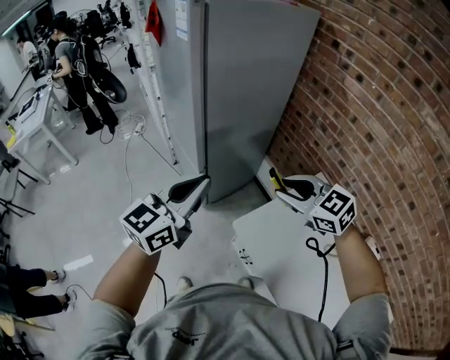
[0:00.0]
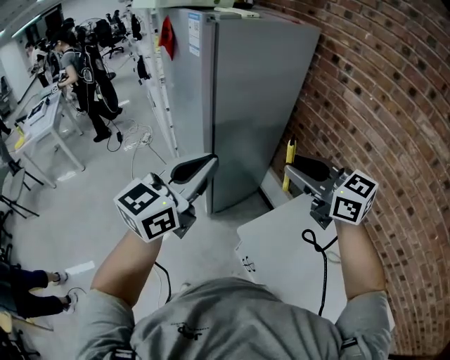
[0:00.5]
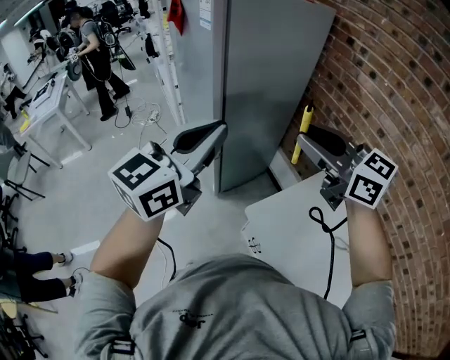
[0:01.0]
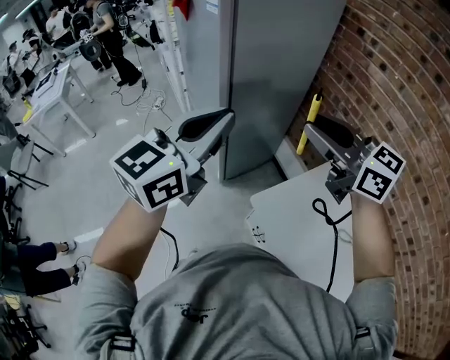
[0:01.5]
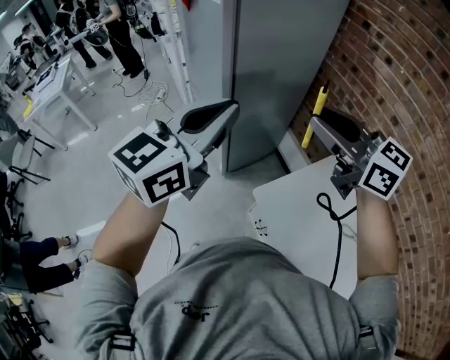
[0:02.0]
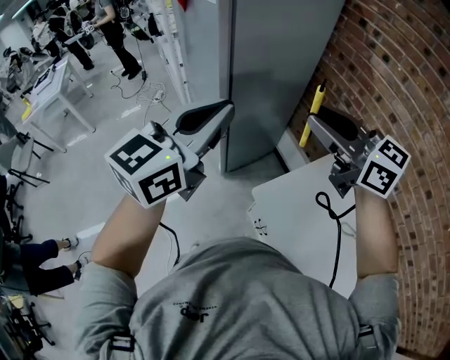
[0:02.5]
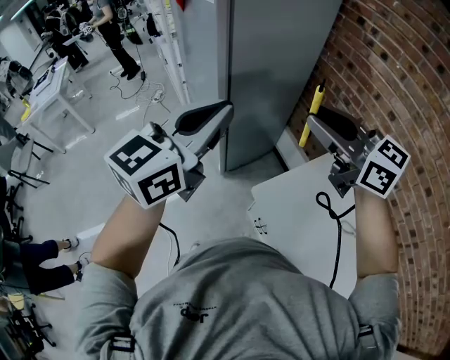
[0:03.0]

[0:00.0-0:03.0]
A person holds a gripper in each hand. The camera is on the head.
0.0 to 1.5 s: The grippers both shift upward by about 15 cm. The right gripper turns by about 30 degrees.
1.5 to 3.0 s: Both grippers stay about where they are.

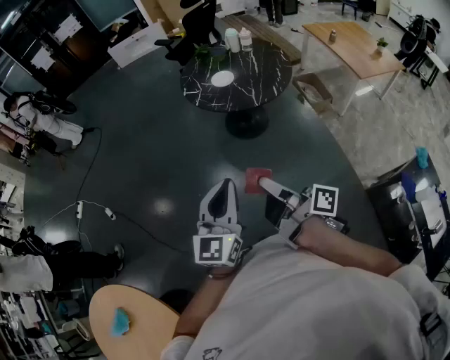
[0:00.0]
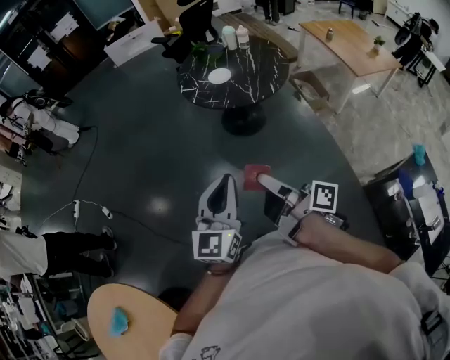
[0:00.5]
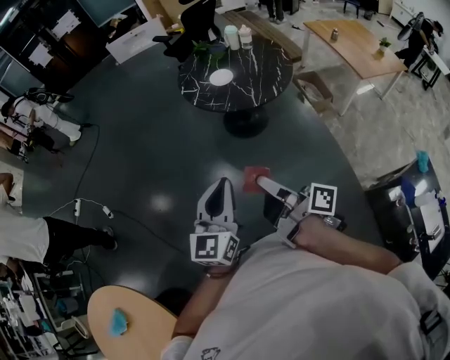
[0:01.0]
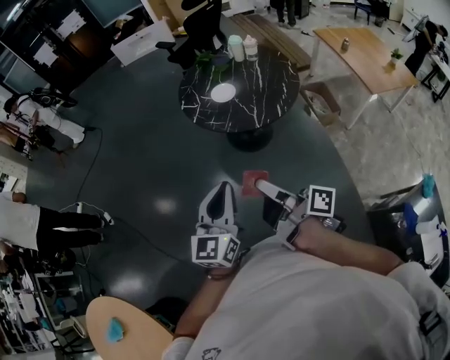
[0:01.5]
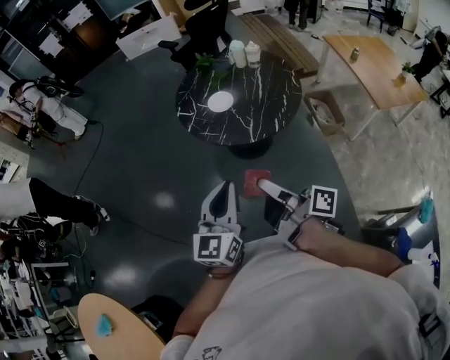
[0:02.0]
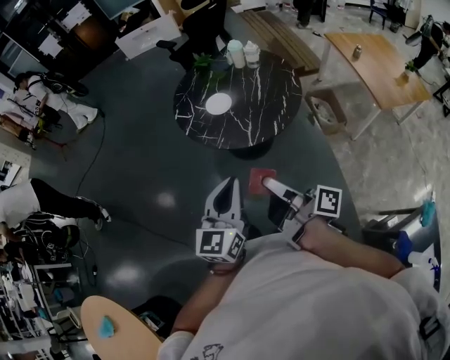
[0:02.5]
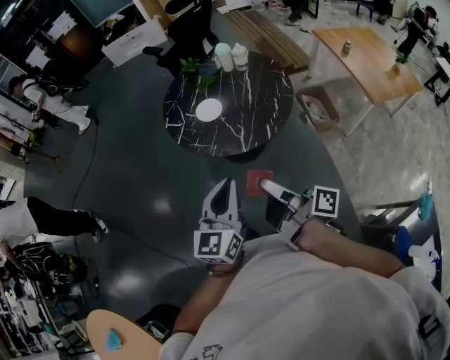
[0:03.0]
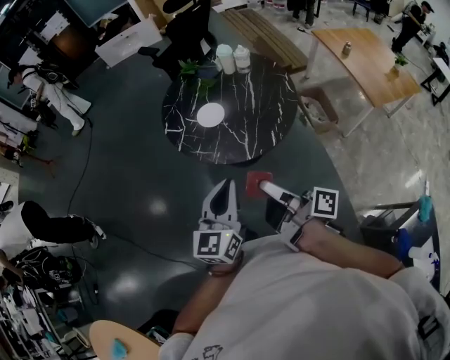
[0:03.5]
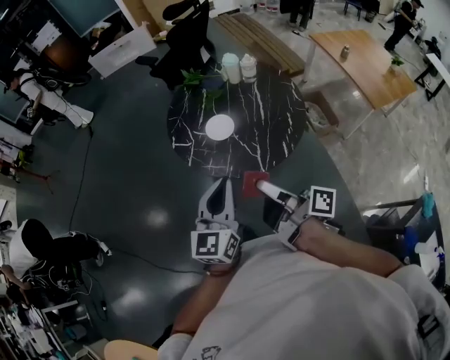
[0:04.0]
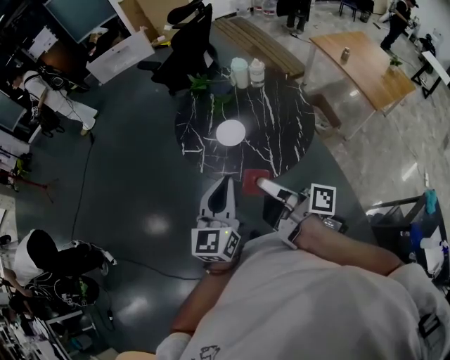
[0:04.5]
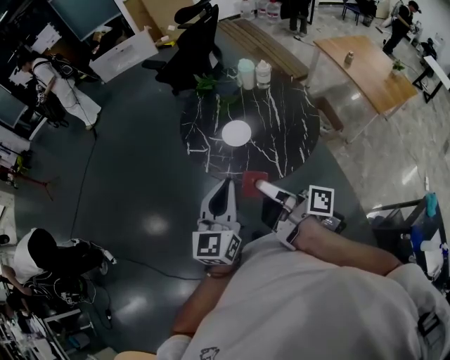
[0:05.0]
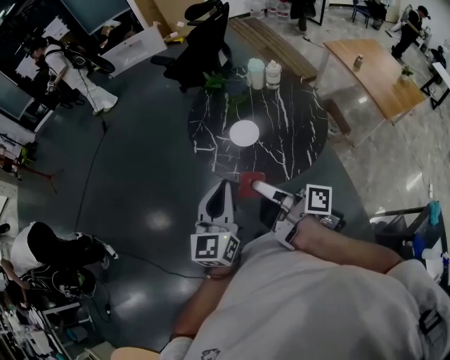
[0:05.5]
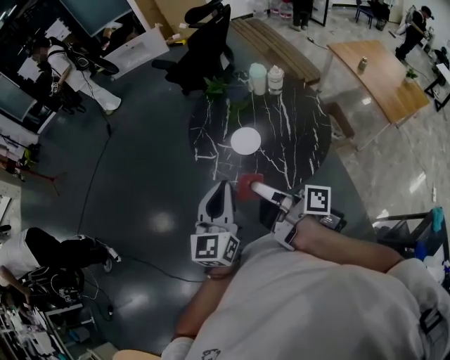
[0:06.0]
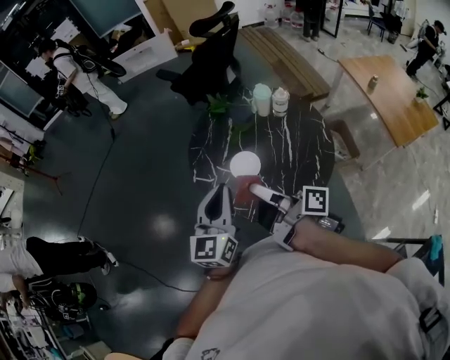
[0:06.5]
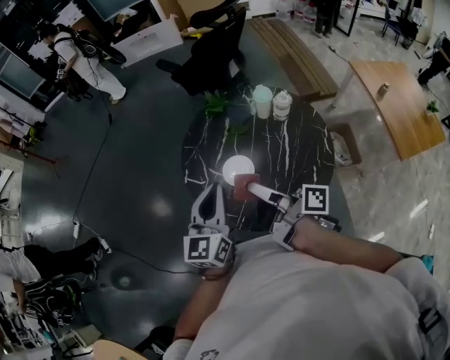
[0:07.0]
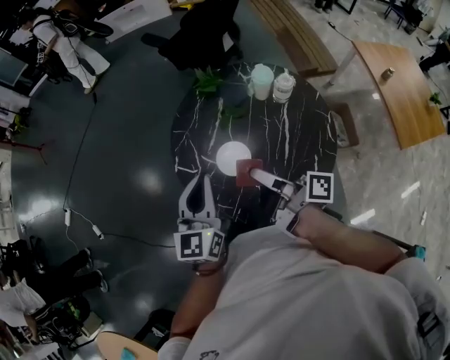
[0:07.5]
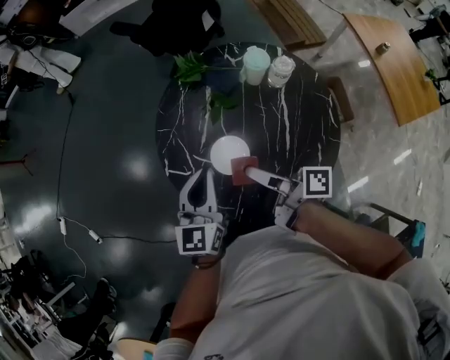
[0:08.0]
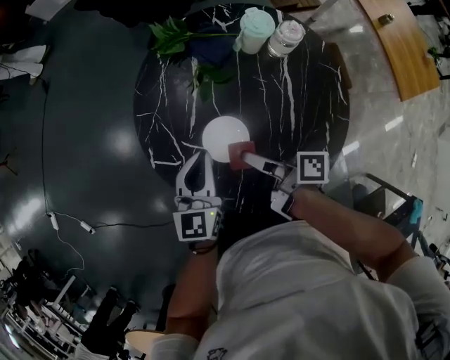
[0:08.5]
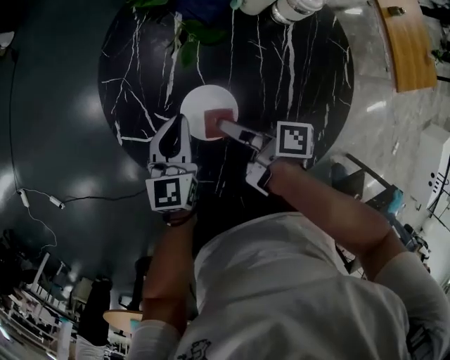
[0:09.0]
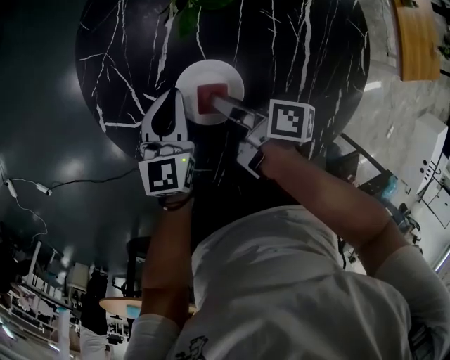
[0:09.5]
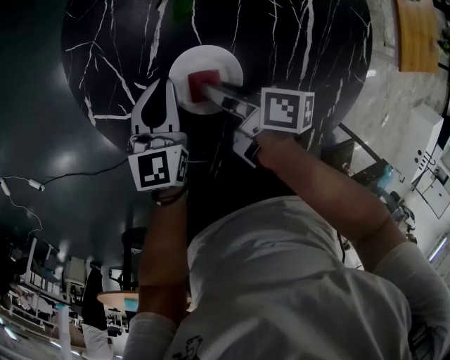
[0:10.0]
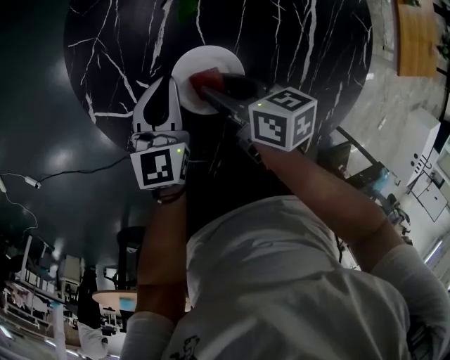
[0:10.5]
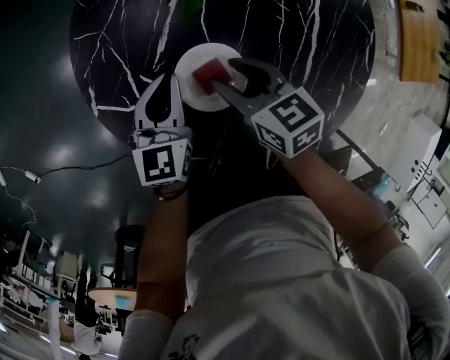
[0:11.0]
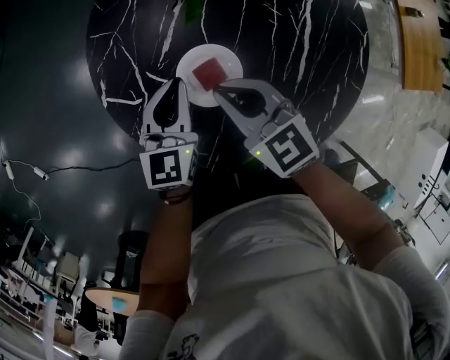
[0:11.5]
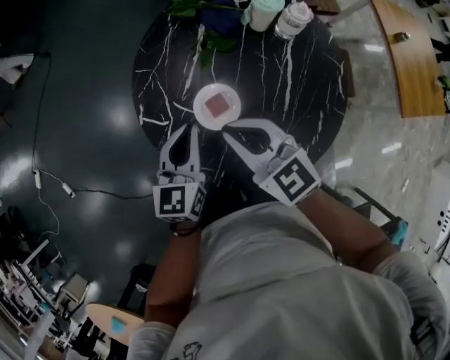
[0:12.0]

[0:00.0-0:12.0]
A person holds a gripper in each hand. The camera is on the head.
0.0 to 2.0 s: The two grippers go some 25 cm forward and to the right.
2.0 to 4.0 s: Both grippers travel together forward, approximately 20 cm.
4.0 to 6.0 s: The two grippers go some 15 cm forward and to the left.
6.0 to 8.0 s: The left gripper moves forward, downward and to the right, roughly 30 cm. Meanwhile the right gripper travels forward, to the right and downward by some 30 cm.
8.0 to 10.0 s: Both grippers travel together downward, some 30 cm. The right gripper rotates about 30 degrees.
10.0 to 12.0 s: The right gripper moves upward, about 25 cm, twists roughly 80 degrees counterclockwise, seen from behind, and closes its fingers. The left gripper heads upward and backward, covering roughly 20 cm.

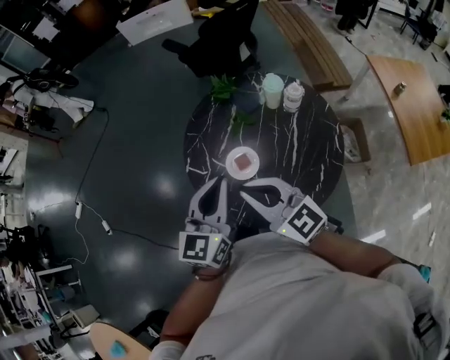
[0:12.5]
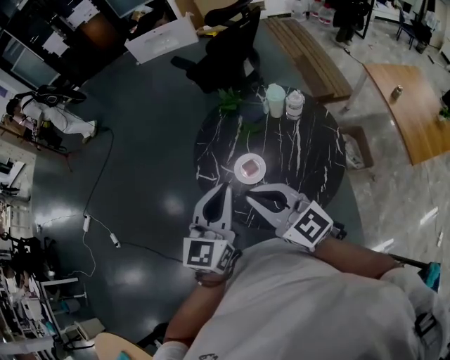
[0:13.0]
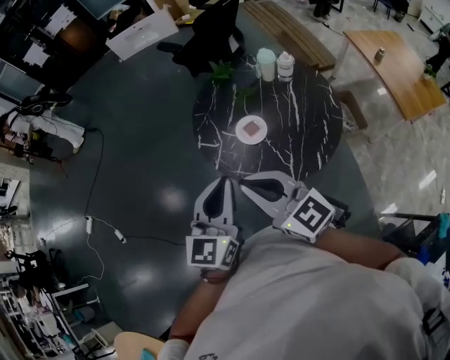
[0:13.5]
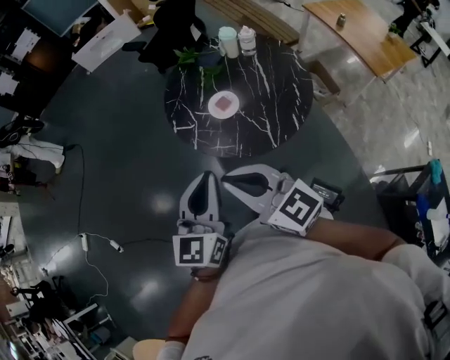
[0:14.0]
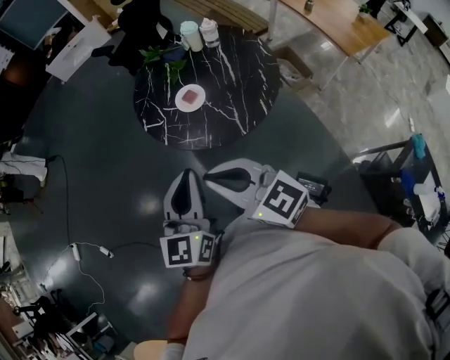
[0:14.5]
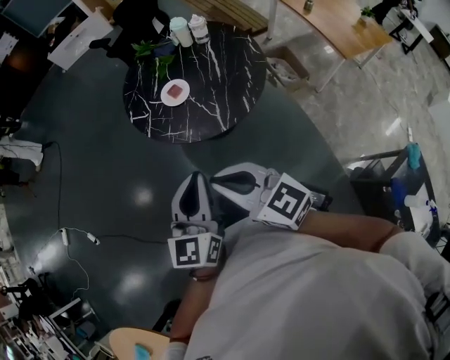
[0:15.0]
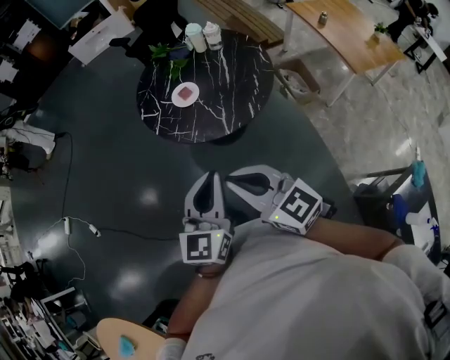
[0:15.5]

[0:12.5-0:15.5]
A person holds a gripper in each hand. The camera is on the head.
12.5 to 14.0 s: The two grippers go approximately 25 cm backward and to the left.
14.0 to 15.5 s: Both grippers move backward and to the right, approximately 25 cm.

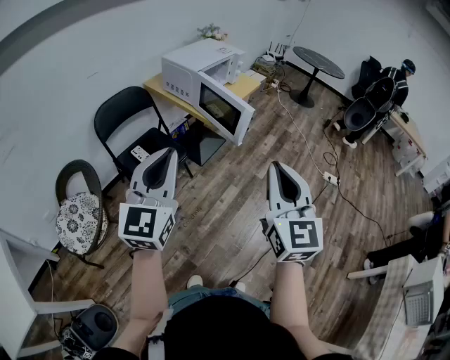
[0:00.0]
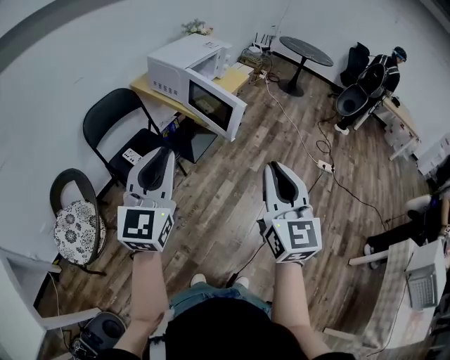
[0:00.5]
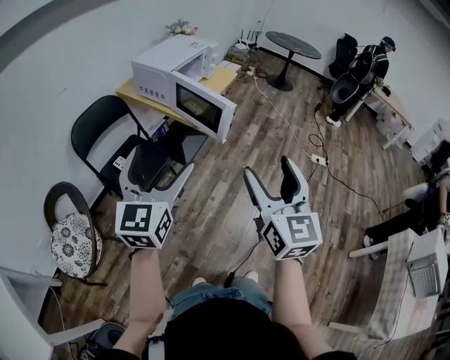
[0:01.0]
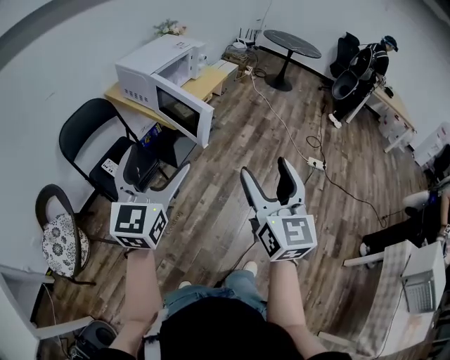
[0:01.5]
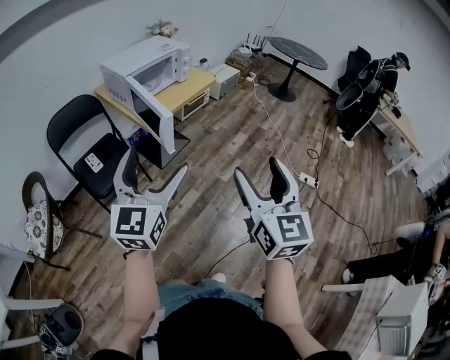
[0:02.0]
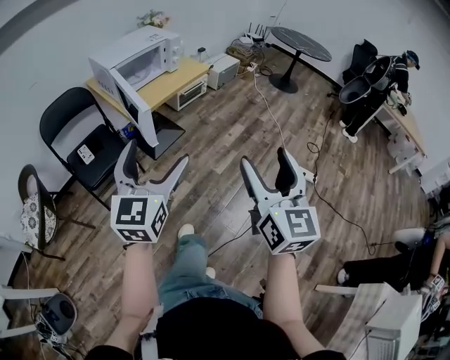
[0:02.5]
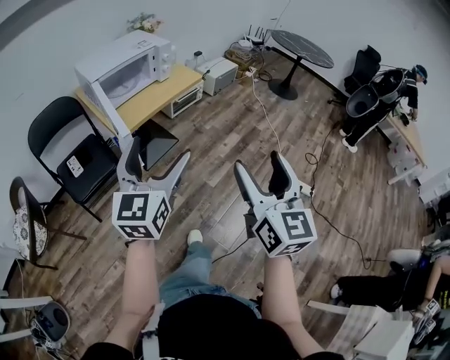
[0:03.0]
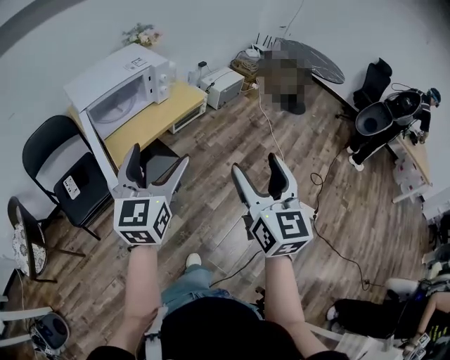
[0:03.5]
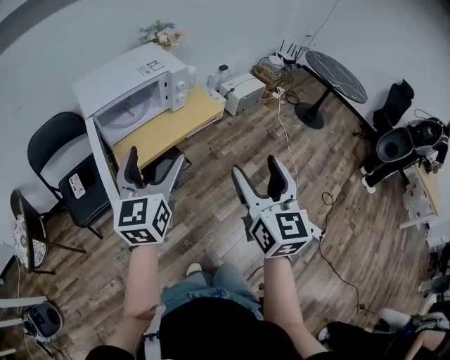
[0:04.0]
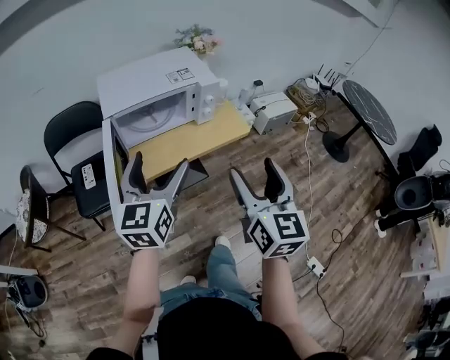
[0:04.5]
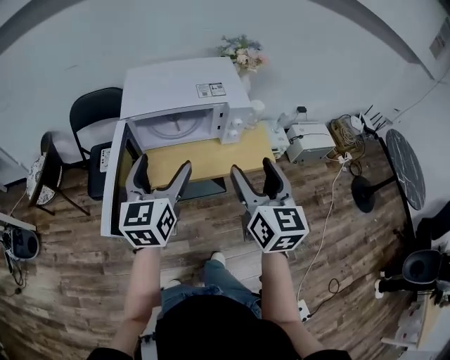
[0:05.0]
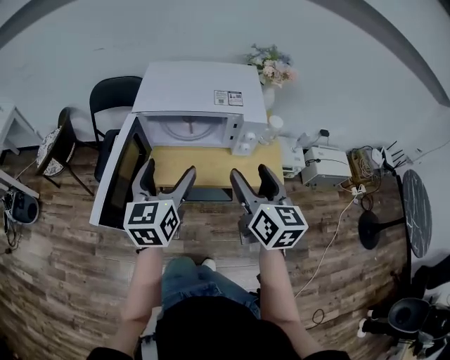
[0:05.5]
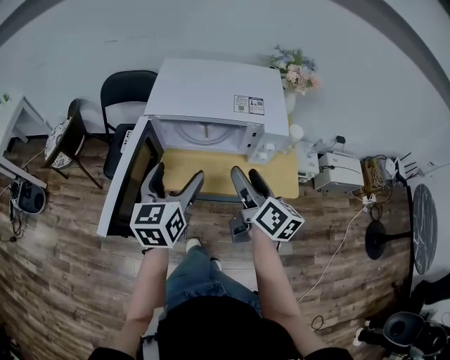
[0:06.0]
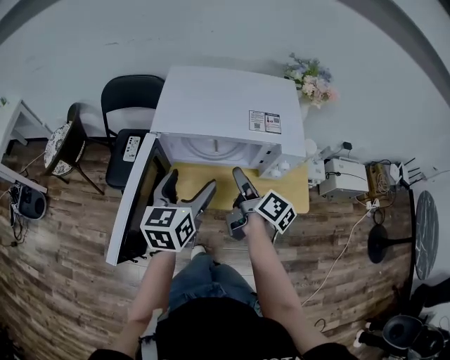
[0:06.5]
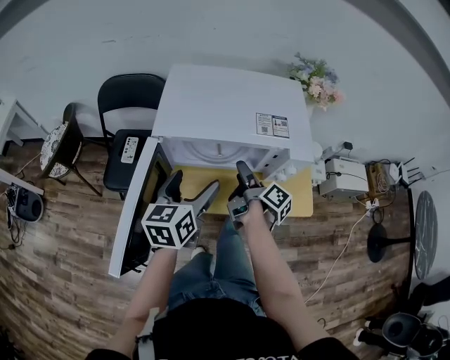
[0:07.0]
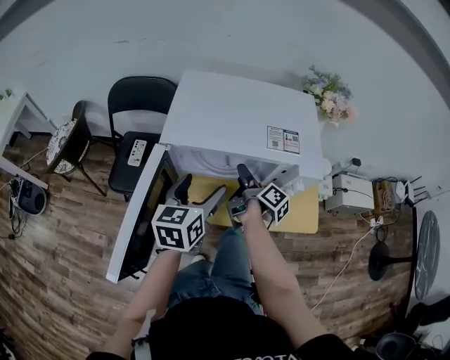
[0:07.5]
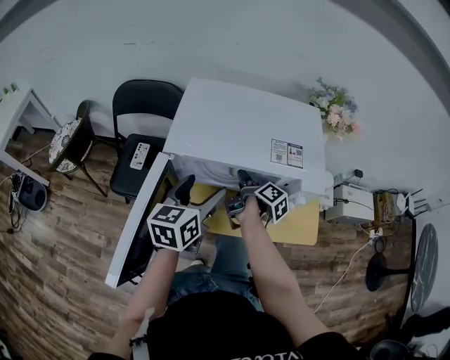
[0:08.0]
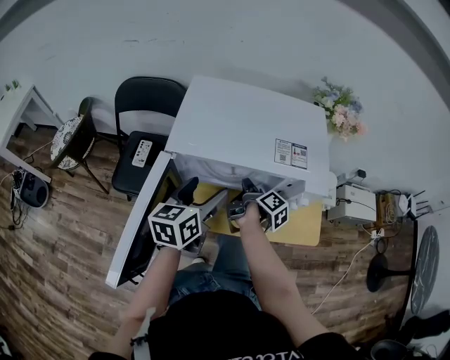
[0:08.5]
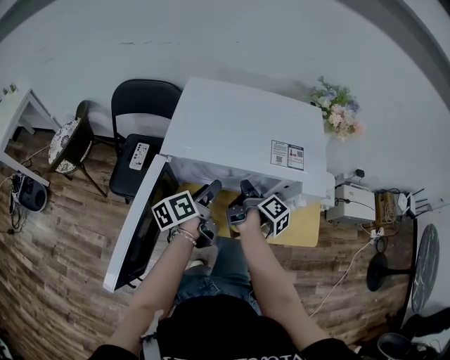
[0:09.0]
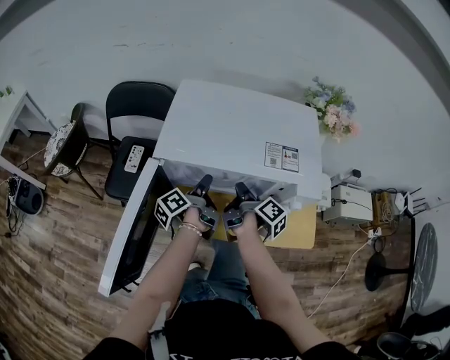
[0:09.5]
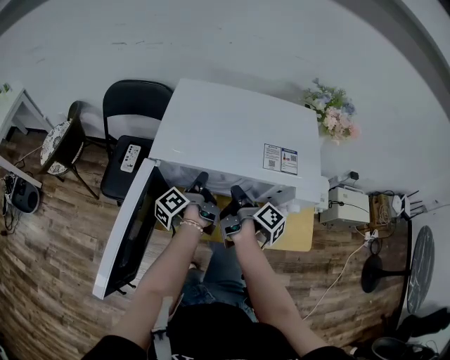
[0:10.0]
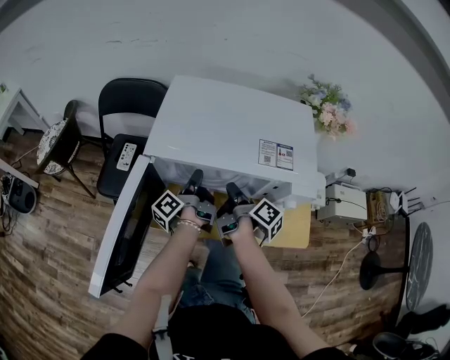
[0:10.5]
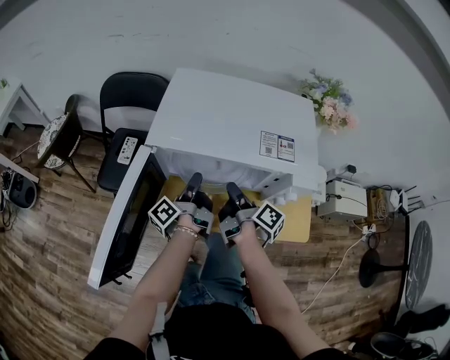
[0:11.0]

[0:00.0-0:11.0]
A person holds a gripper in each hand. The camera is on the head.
0.0 to 2.0 s: Both grippers move to the right and forward, approximately 30 cm. The right gripper opens; the left gripper opens its fingers.
2.0 to 3.5 s: Both grippers move forward and to the right, roughly 35 cm.
3.5 to 5.5 s: The right gripper moves some 40 cm, and swivels approximately 50 degrees. The left gripper shifts by roughly 30 cm, and swivels approximately 50 degrees.
5.5 to 7.5 s: The right gripper goes approximately 30 cm forward and downward, and rolls clockwise, seen from behind, by roughly 70 degrees. Meanwhile the left gripper heads forward and downward, covering roughly 20 cm.
7.5 to 9.0 s: The left gripper goes roughly 10 cm downward and forward, rolls counterclockwise, seen from behind, by approximately 50 degrees, and closes its fingers, while the right gripper closes its fingers.
9.0 to 11.0 s: The left gripper swivels some 40 degrees, and closes up.
